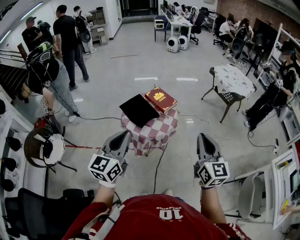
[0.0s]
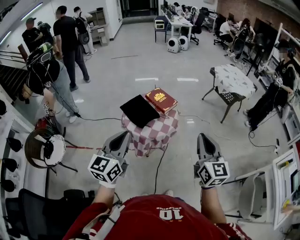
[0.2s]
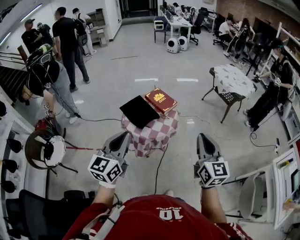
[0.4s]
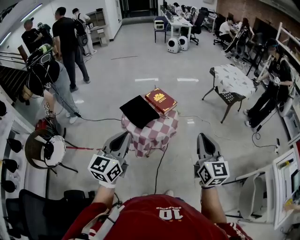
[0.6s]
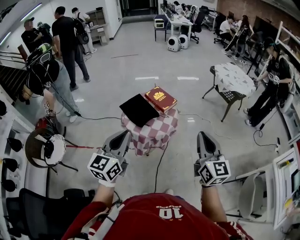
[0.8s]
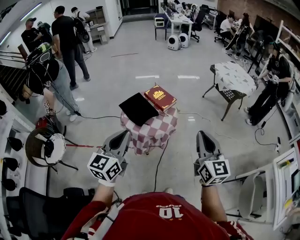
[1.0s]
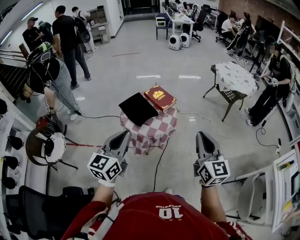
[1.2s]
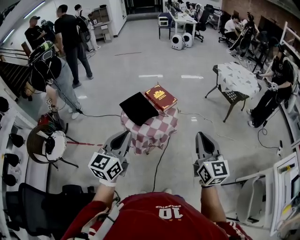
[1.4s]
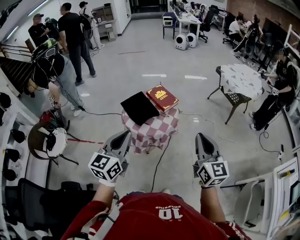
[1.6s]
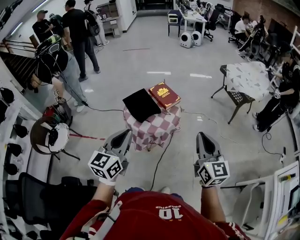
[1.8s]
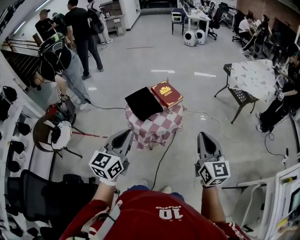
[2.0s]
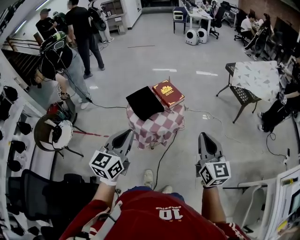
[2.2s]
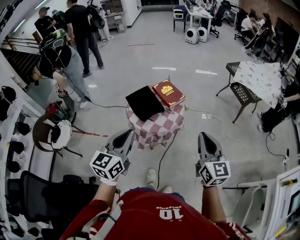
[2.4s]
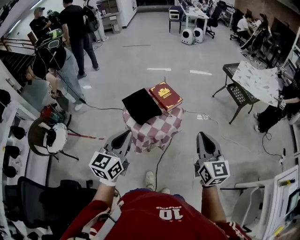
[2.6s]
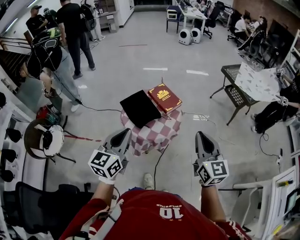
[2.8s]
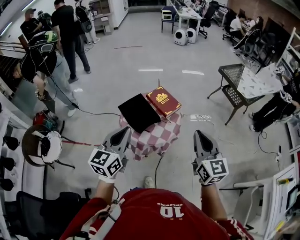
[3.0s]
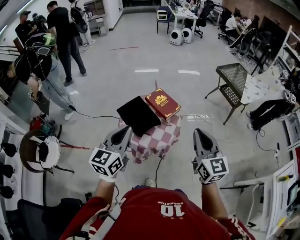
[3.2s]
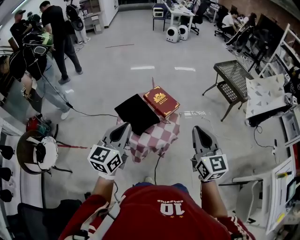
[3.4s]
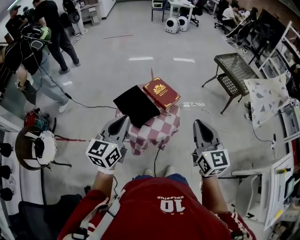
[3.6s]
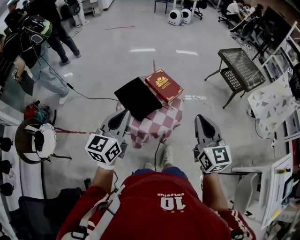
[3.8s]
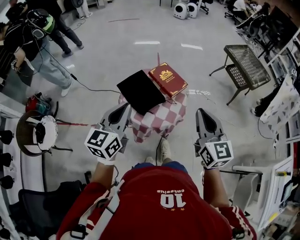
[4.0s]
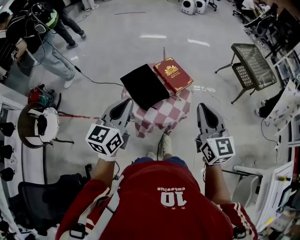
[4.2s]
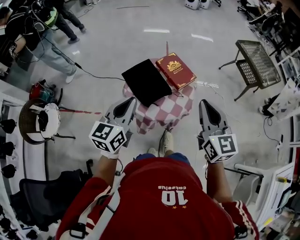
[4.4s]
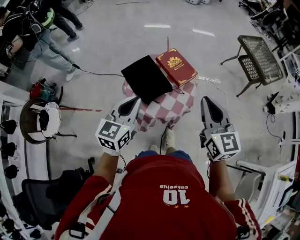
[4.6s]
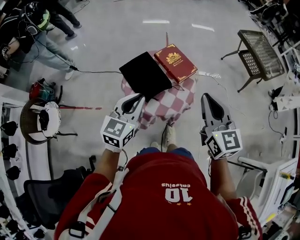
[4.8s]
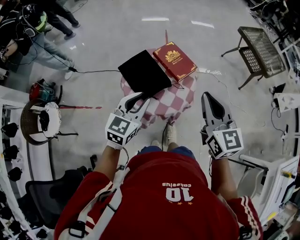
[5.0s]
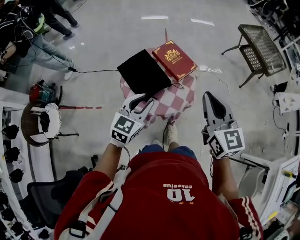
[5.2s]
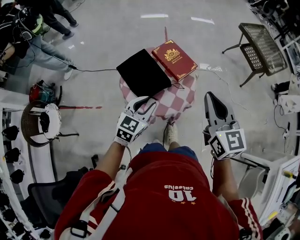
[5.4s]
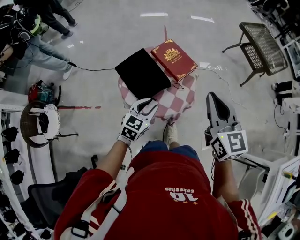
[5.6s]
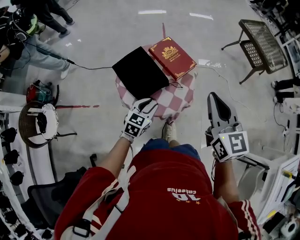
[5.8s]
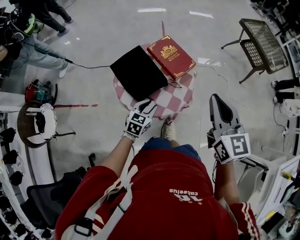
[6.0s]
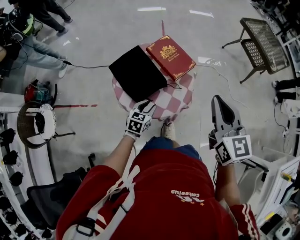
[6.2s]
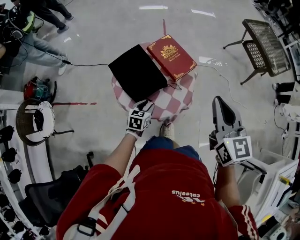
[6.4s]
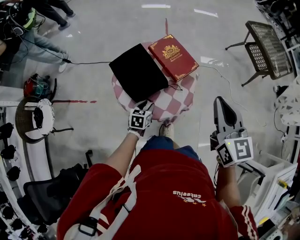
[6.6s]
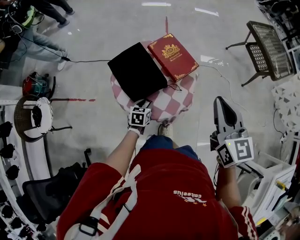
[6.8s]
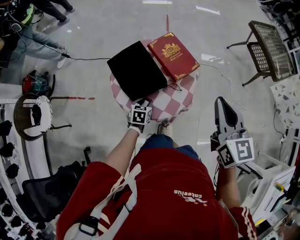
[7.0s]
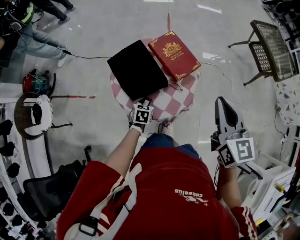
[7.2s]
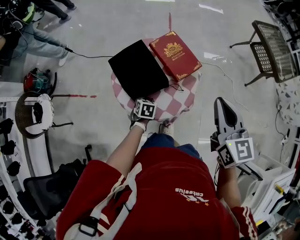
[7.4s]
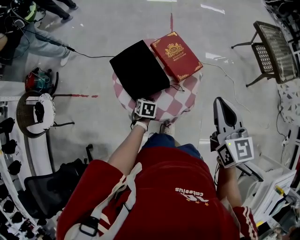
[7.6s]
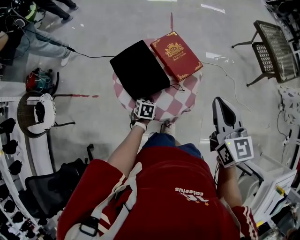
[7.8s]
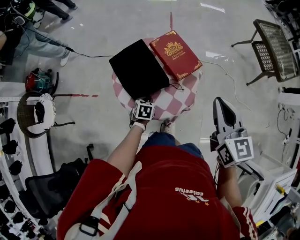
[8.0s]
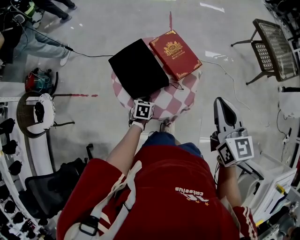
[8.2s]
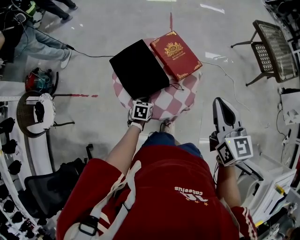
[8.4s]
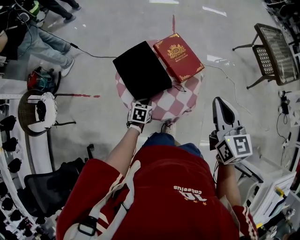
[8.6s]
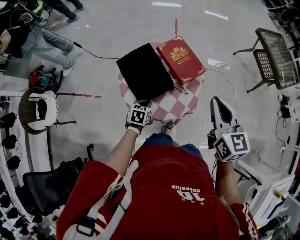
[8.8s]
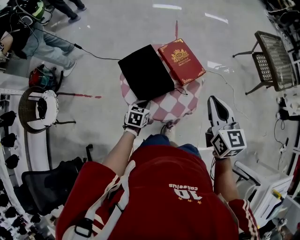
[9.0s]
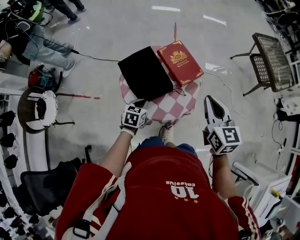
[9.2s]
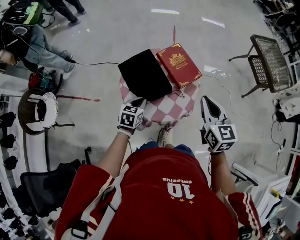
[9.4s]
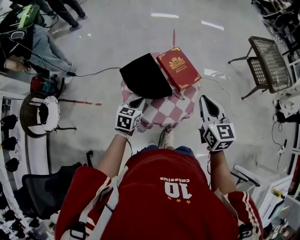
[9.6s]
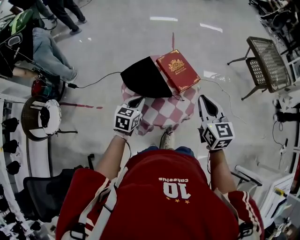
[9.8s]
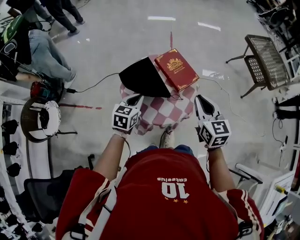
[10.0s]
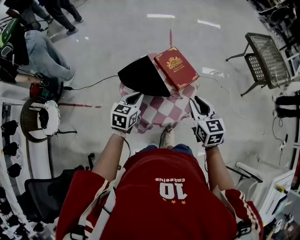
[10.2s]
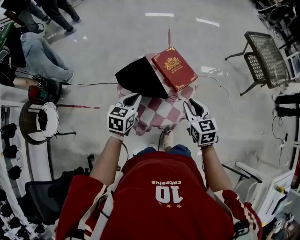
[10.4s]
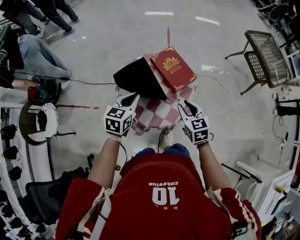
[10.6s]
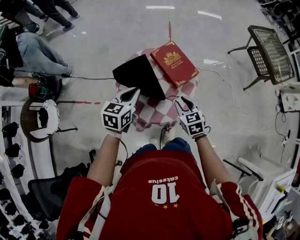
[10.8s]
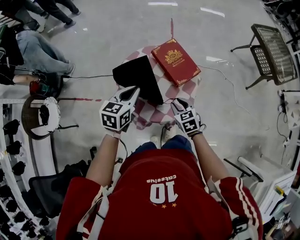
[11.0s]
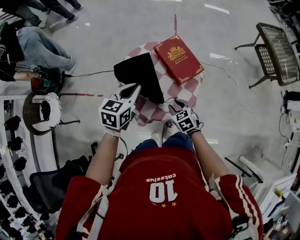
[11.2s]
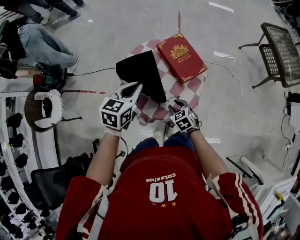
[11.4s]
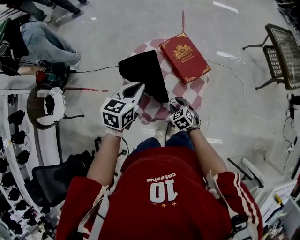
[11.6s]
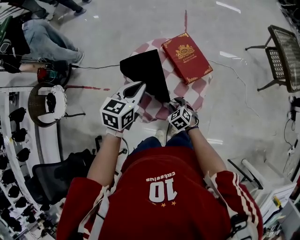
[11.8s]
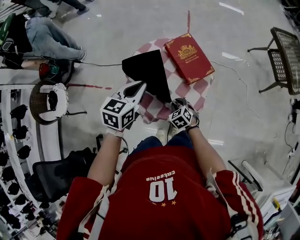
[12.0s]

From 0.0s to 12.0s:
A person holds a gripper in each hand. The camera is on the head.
From 0.0s to 1.6s: The right gripper shifts by about 5 cm. The left gripper goes approximately 5 cm to the right.
From 1.6s to 3.0s: The right gripper shifts roughly 15 cm forward and to the left. Meanwhile the left gripper moves forward, about 15 cm.
From 3.0s to 4.4s: The left gripper travels forward and downward by about 10 cm, while the right gripper goes about 10 cm forward and to the left.
From 4.4s to 6.0s: The left gripper shifts about 30 cm downward, swivels some 30 degrees, and opens its fingers. The right gripper heads forward, to the right and downward, covering some 10 cm.
From 6.0s to 7.6s: The left gripper is displaced downward and forward by some 15 cm, and changes its angle by roughly 40 degrees; the right gripper heads forward, covering about 5 cm.
From 7.6s to 9.0s: The left gripper is displaced upward by about 10 cm, and closes up.
From 9.0s to 10.4s: The left gripper moves upward, some 15 cm, while the right gripper shifts some 10 cm downward.
From 10.4s to 12.0s: The right gripper shifts about 25 cm downward, and rotates approximately 40 degrees.

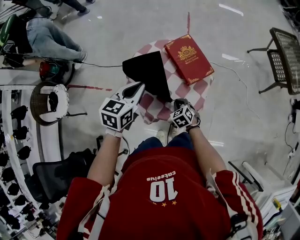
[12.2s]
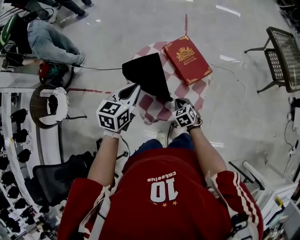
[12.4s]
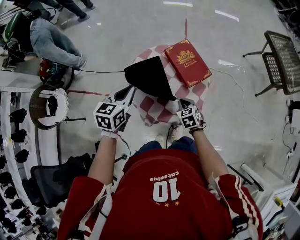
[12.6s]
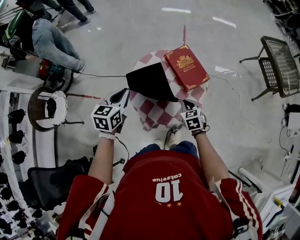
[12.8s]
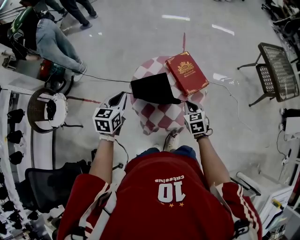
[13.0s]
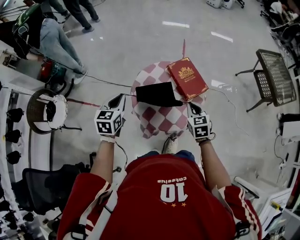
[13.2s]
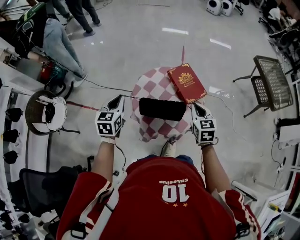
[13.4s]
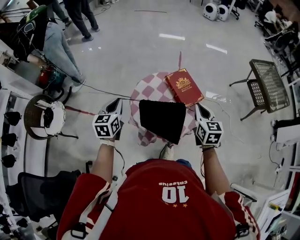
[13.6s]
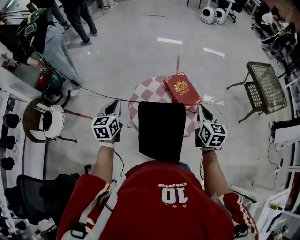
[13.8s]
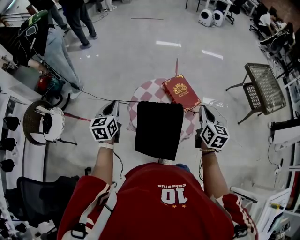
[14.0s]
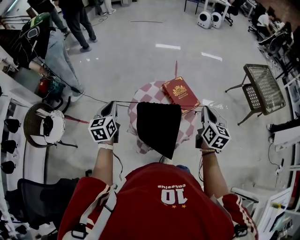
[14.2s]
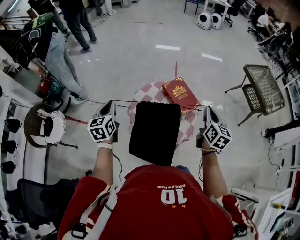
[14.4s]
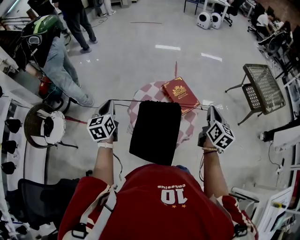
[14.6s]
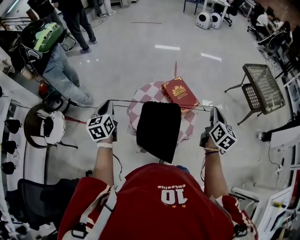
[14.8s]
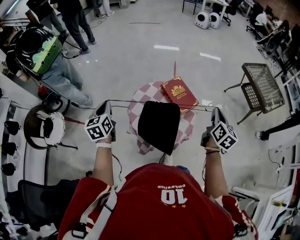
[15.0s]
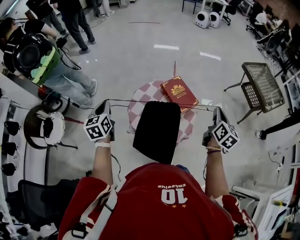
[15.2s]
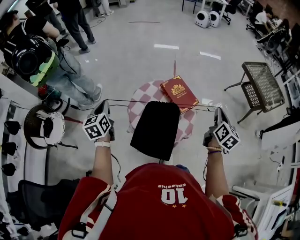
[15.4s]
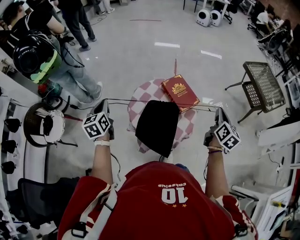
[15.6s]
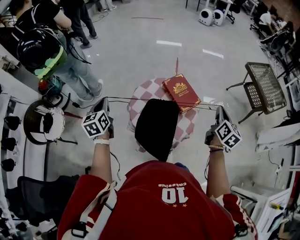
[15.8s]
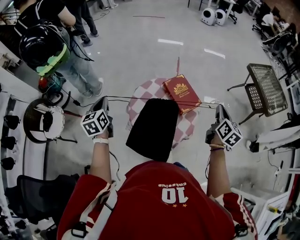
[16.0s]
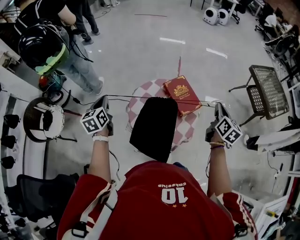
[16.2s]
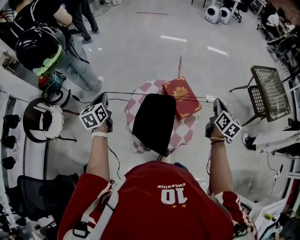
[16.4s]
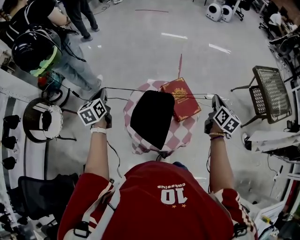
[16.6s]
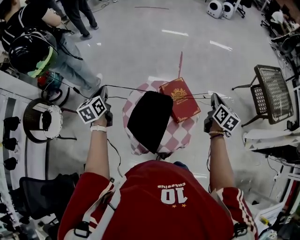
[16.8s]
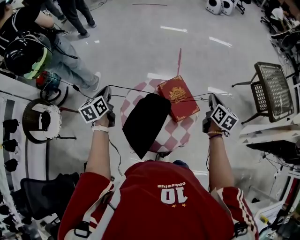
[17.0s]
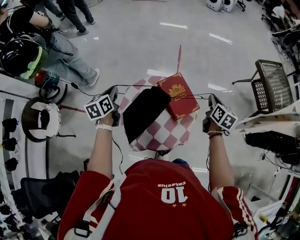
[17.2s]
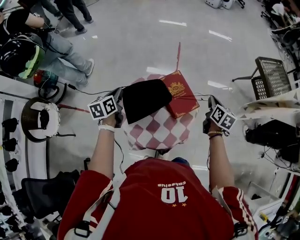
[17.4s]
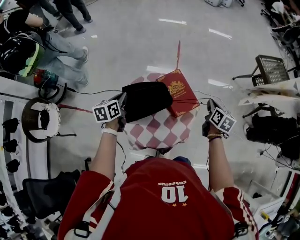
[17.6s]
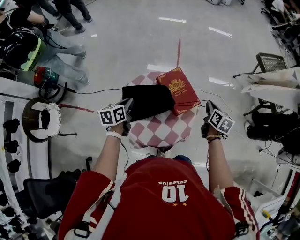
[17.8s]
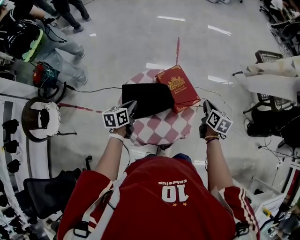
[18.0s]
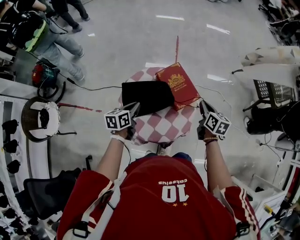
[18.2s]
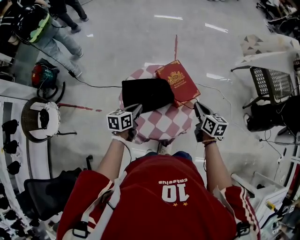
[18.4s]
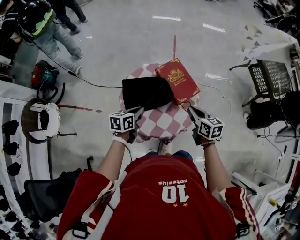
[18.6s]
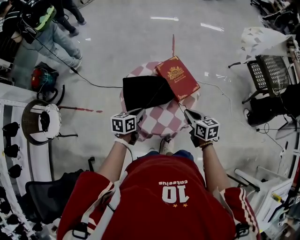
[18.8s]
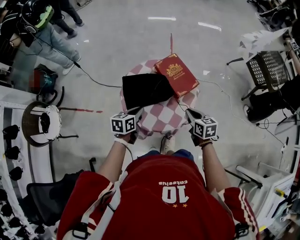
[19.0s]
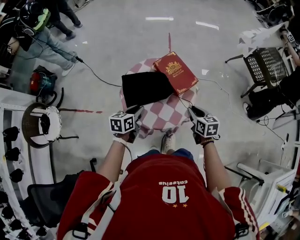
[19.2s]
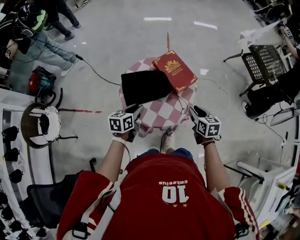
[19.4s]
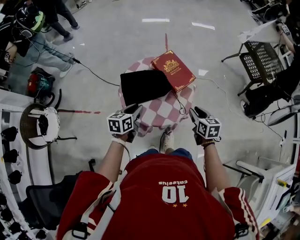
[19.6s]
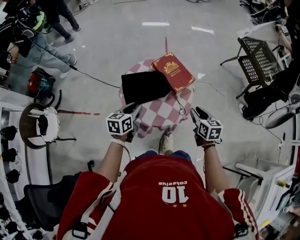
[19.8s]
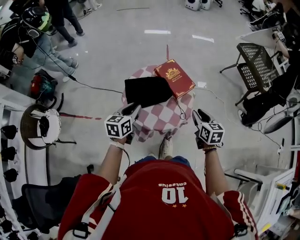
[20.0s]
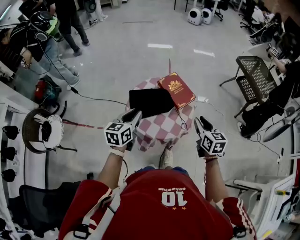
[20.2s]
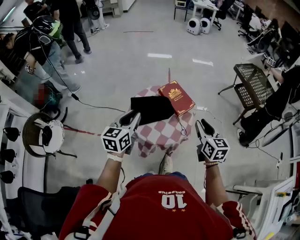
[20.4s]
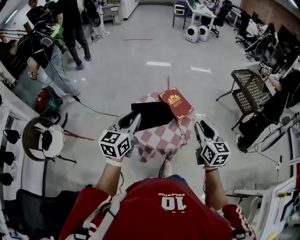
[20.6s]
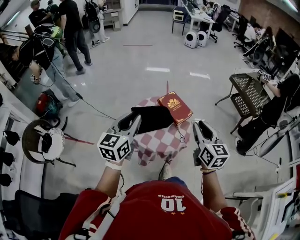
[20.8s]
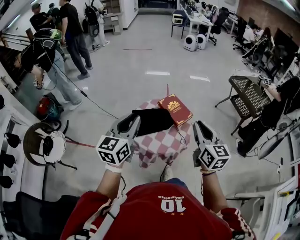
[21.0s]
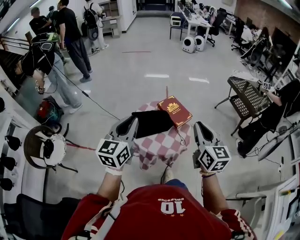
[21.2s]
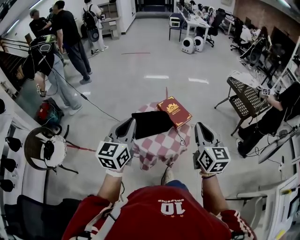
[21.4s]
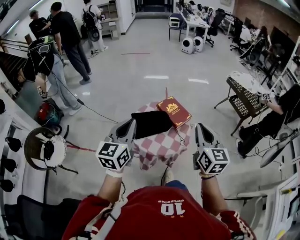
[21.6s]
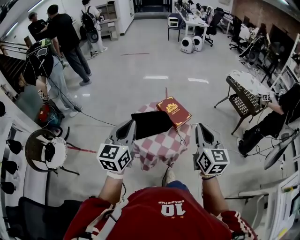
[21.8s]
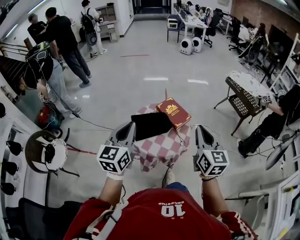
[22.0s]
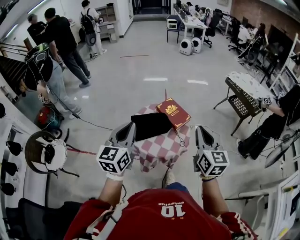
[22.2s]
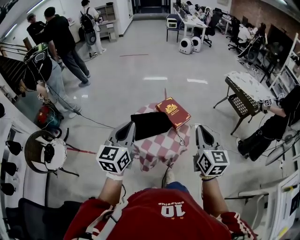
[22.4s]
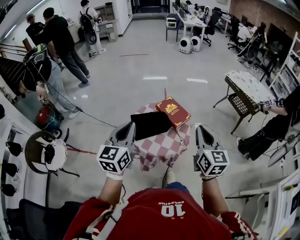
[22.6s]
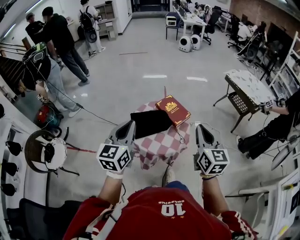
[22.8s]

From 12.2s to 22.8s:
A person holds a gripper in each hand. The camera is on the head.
From 12.2s to 13.8s: The left gripper is displaced to the left by about 15 cm, and rotates roughly 20 degrees. The right gripper moves upward, approximately 35 cm, and tips its fingers upward by about 40 degrees.
From 13.8s to 15.2s: The left gripper shifts by roughly 5 cm; the right gripper travels to the right by some 10 cm, and swivels roughly 30 degrees.
From 15.2s to 16.8s: The two grippers go about 20 cm forward.
From 16.8s to 18.2s: The left gripper moves to the right and downward, approximately 25 cm, and turns by approximately 30 degrees, while the right gripper shifts roughly 15 cm downward and backward.
From 18.2s to 19.8s: The right gripper travels backward by roughly 20 cm, and opens up. The left gripper goes approximately 10 cm backward, and opens up.
From 19.8s to 21.2s: Both grippers travel together upward, about 30 cm. The right gripper points its fingers some 30 degrees further upward; the left gripper rotates some 40 degrees.
From 21.2s to 22.8s: The grippers make only small movements.

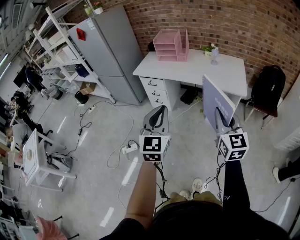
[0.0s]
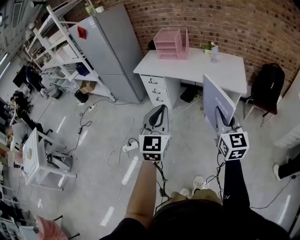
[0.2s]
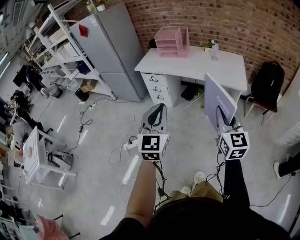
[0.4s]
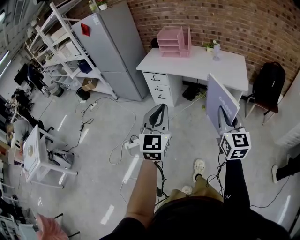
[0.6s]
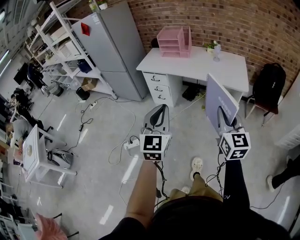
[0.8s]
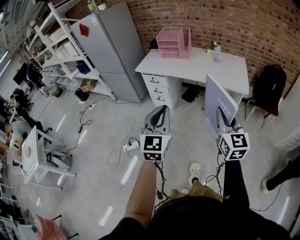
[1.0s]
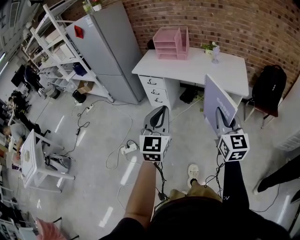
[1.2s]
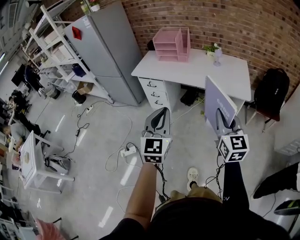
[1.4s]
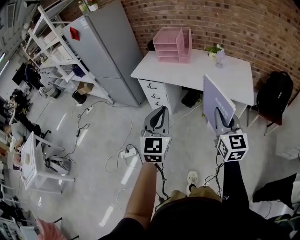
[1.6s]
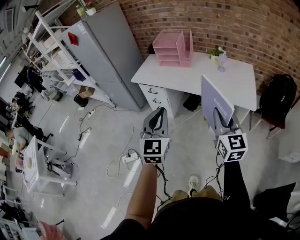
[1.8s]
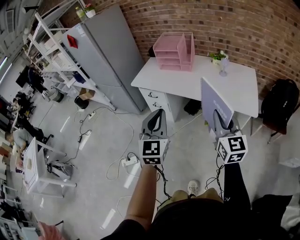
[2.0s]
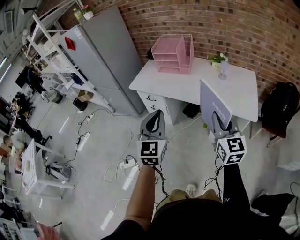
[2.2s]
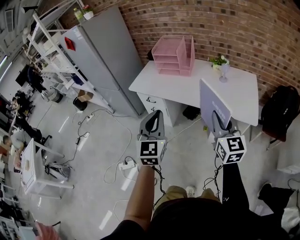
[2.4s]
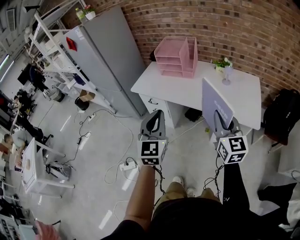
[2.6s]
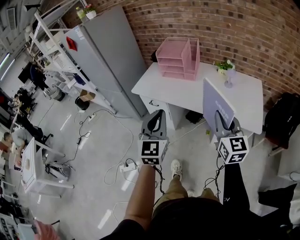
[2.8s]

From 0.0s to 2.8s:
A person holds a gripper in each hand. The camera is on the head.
From 0.0s to 1.4s: Both grippers travel together forward, approximately 5 cm.
From 1.4s to 2.8s: Both grippers move forward, roughly 25 cm.
